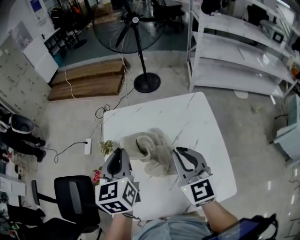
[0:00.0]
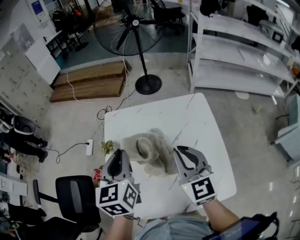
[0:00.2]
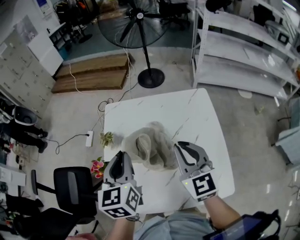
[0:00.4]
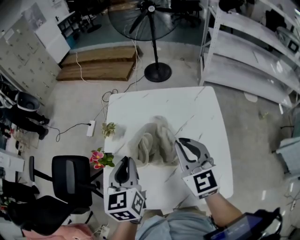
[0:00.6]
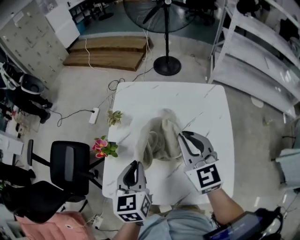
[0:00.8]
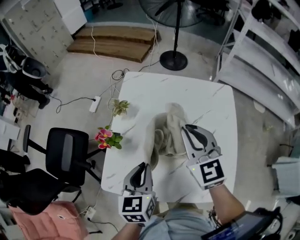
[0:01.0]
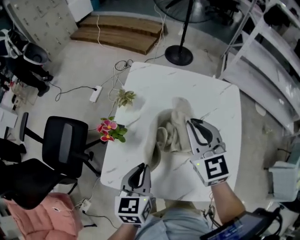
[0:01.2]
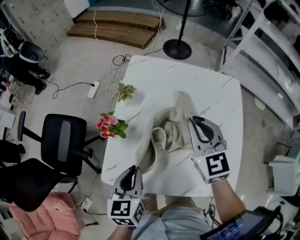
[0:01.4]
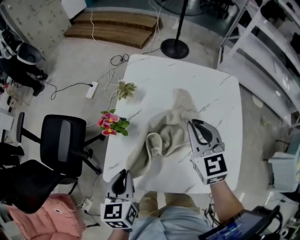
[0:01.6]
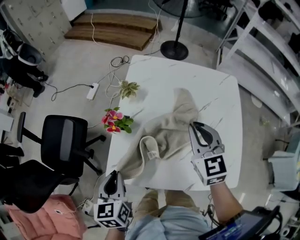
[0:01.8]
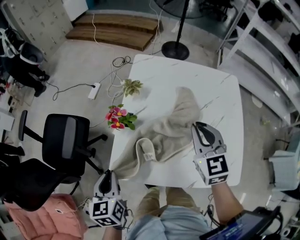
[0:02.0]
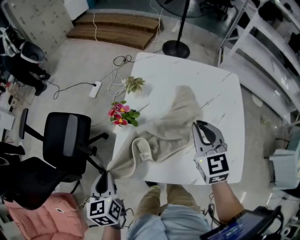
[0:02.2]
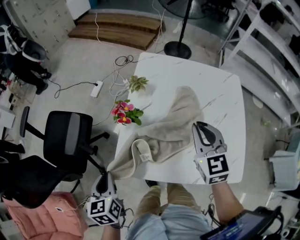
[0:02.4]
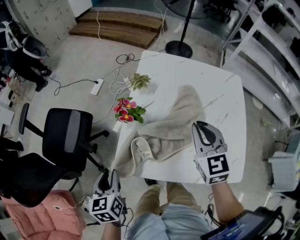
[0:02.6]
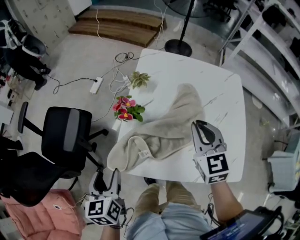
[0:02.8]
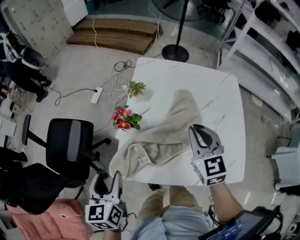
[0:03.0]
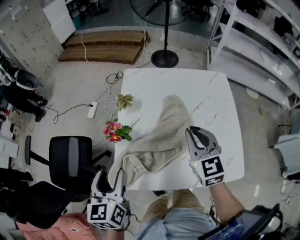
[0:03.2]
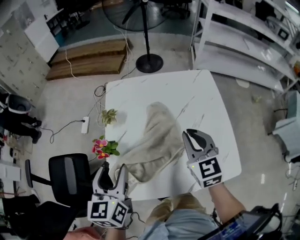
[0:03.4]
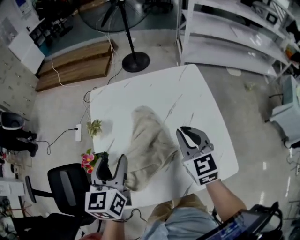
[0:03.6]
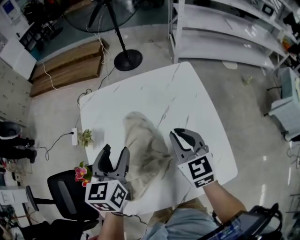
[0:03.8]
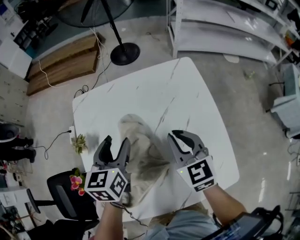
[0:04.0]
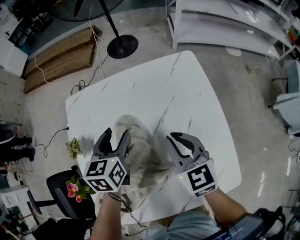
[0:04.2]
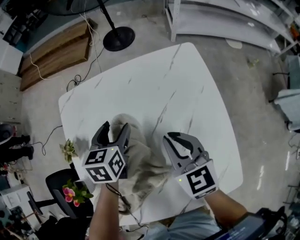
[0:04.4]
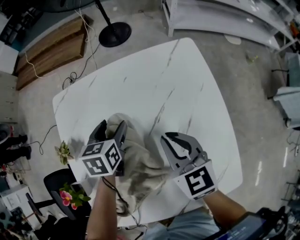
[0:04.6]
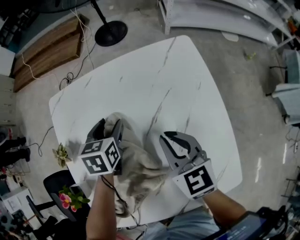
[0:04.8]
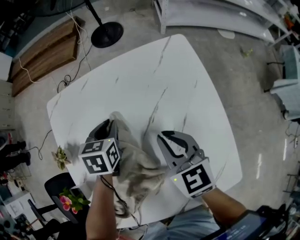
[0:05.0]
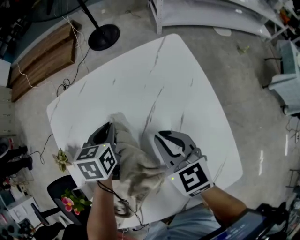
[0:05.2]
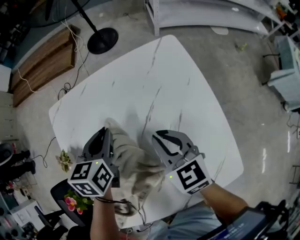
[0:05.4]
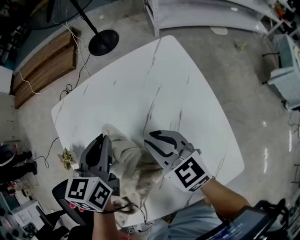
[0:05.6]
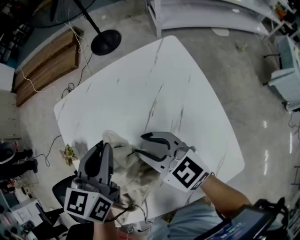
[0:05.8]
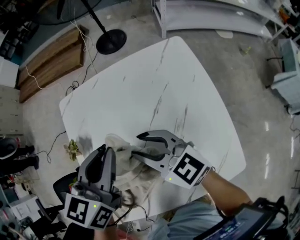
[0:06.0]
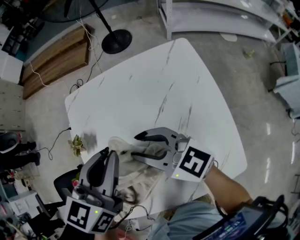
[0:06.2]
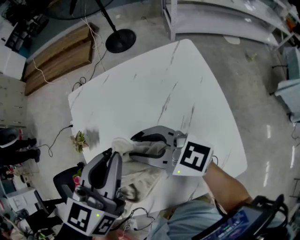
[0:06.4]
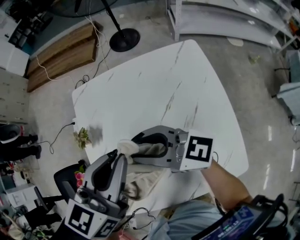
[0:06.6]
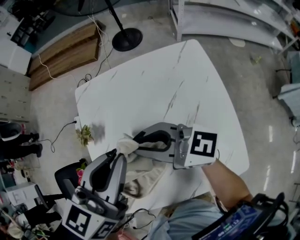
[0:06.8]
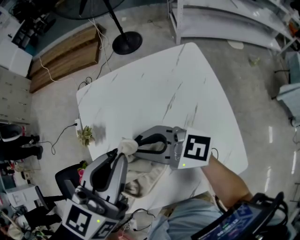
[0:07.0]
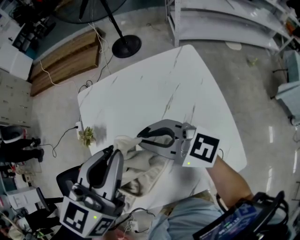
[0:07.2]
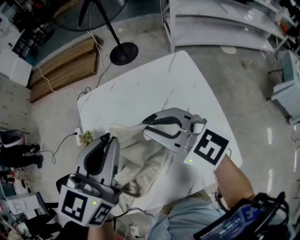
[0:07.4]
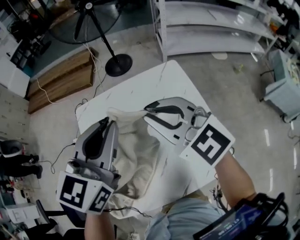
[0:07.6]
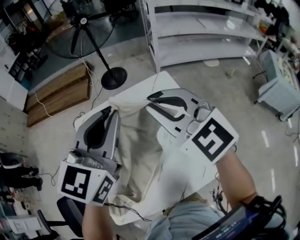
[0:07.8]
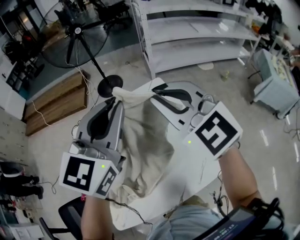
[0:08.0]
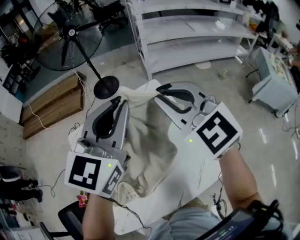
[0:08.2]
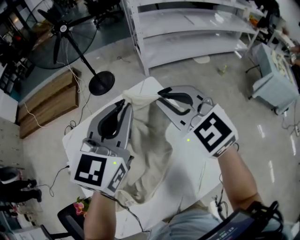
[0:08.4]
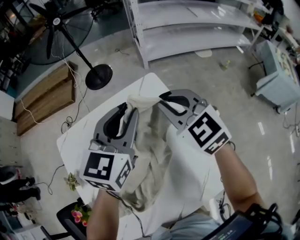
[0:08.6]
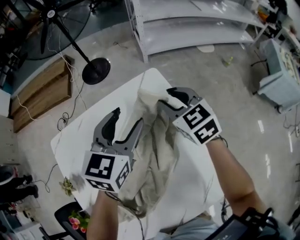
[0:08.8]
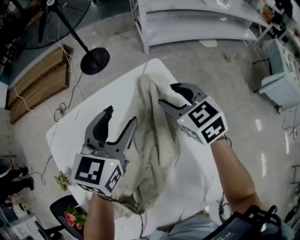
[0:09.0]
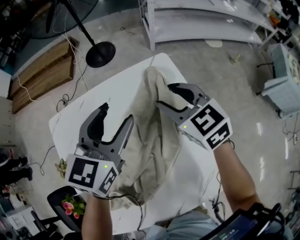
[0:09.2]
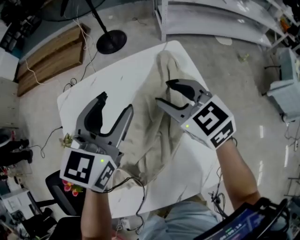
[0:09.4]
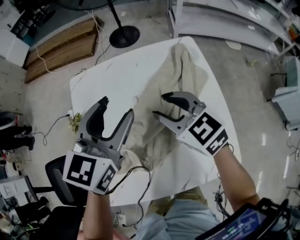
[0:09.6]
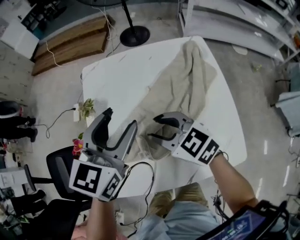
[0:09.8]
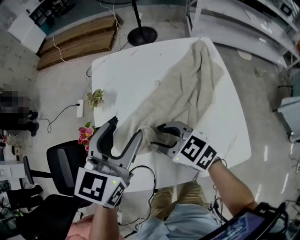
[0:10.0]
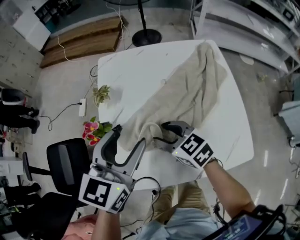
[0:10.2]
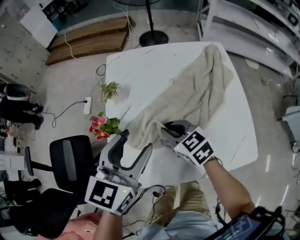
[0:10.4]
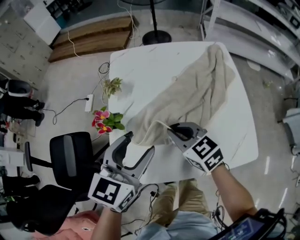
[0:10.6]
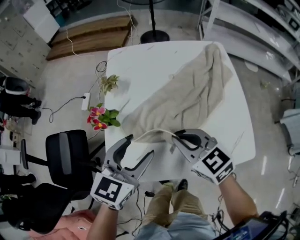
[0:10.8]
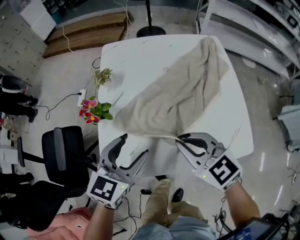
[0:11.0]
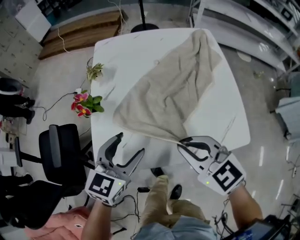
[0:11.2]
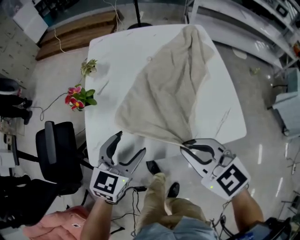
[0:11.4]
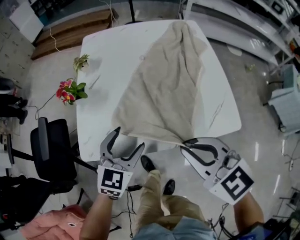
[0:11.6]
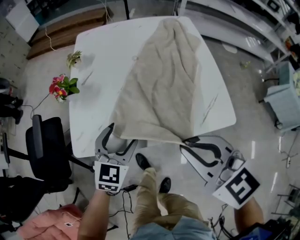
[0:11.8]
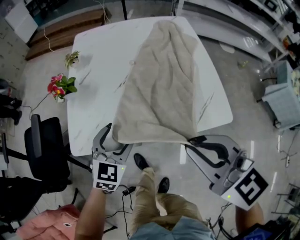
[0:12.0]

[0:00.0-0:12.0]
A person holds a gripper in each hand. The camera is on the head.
0:00.0 to 0:01.6: The right gripper travels downward and to the left by some 10 cm; the left gripper travels backward, downward and to the left by approximately 30 cm, and swivels some 20 degrees.
0:01.6 to 0:03.0: The right gripper changes place by roughly 5 cm. The left gripper shifts about 10 cm to the left, and opens.
0:03.0 to 0:04.4: The left gripper shifts approximately 50 cm forward and to the right, and turns by some 40 degrees. The right gripper shifts approximately 20 cm to the right, forward and downward.
0:04.4 to 0:06.0: The right gripper travels to the left by approximately 10 cm, swivels about 30 degrees, and opens up. Meanwhile the left gripper is displaced upward and backward by some 20 cm, and closes its fingers.
0:06.0 to 0:07.6: The two grippers go approximately 15 cm upward. The right gripper turns by approximately 20 degrees, and closes its fingers. The left gripper rotates roughly 20 degrees.
0:07.6 to 0:09.0: The grippers both shift downward, forward and to the right by roughly 30 cm. The left gripper opens its fingers; the right gripper rotates some 40 degrees, and opens up.
0:09.0 to 0:10.4: The left gripper ends up some 40 cm from where it was, while the right gripper moves roughly 40 cm, rotates some 30 degrees, and closes up.
0:10.4 to 0:12.0: The right gripper heads backward, upward and to the right, covering some 30 cm. Meanwhile the left gripper heads downward and backward, covering about 25 cm, and changes its angle by some 20 degrees.

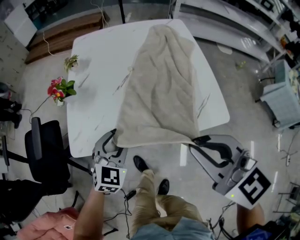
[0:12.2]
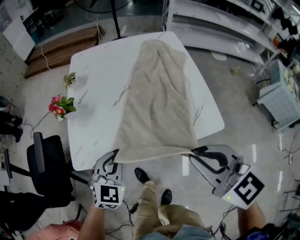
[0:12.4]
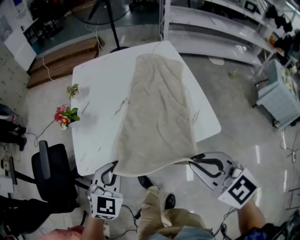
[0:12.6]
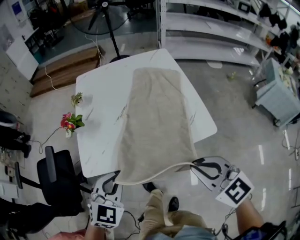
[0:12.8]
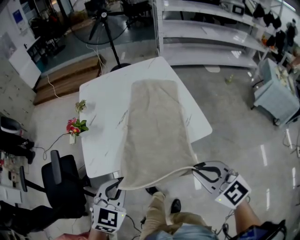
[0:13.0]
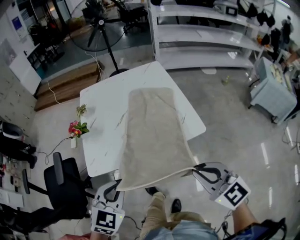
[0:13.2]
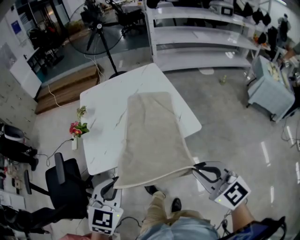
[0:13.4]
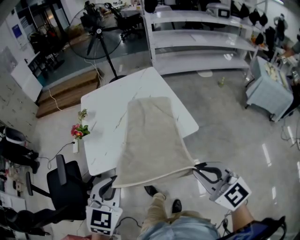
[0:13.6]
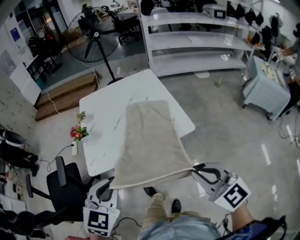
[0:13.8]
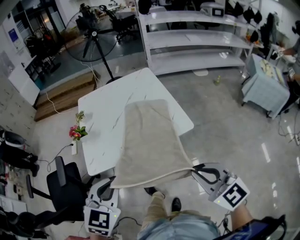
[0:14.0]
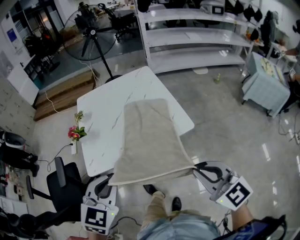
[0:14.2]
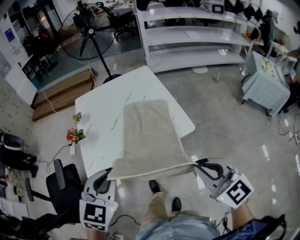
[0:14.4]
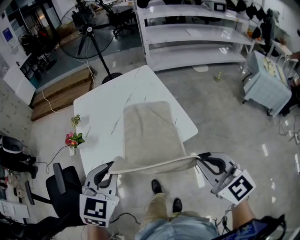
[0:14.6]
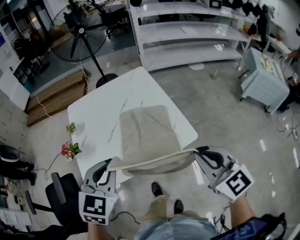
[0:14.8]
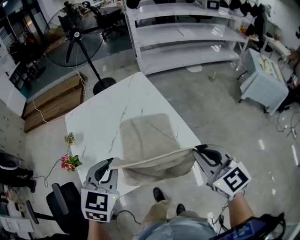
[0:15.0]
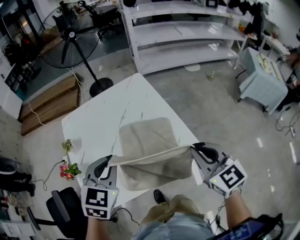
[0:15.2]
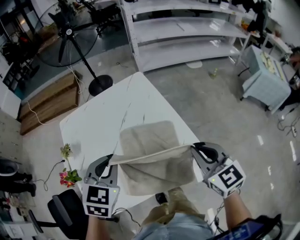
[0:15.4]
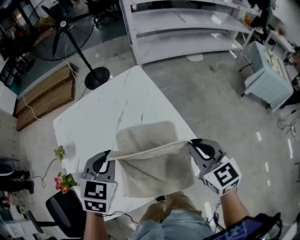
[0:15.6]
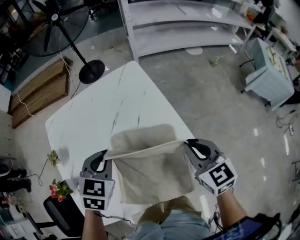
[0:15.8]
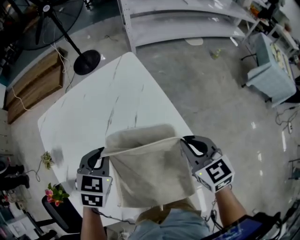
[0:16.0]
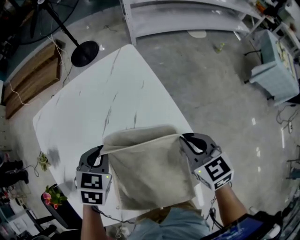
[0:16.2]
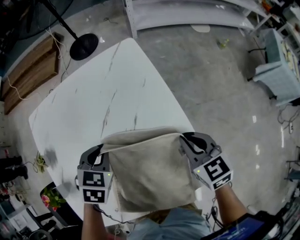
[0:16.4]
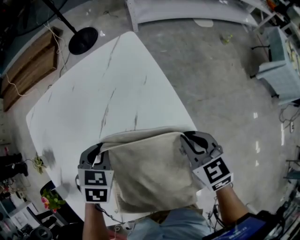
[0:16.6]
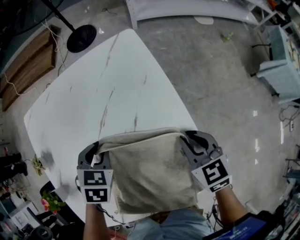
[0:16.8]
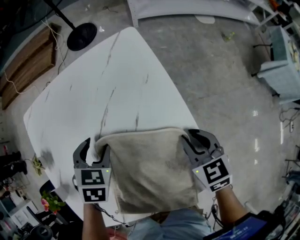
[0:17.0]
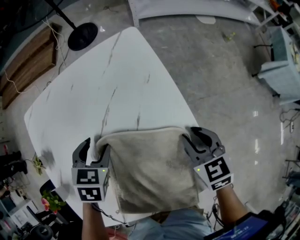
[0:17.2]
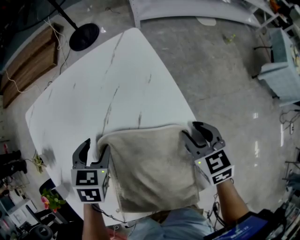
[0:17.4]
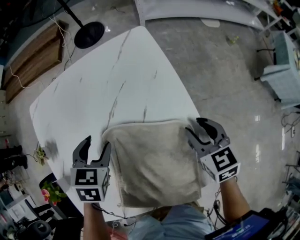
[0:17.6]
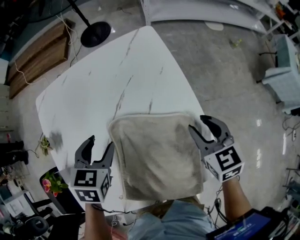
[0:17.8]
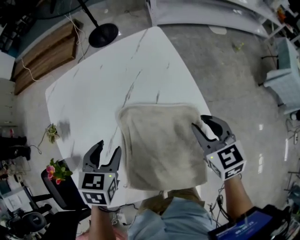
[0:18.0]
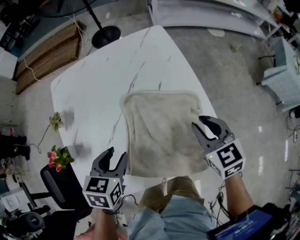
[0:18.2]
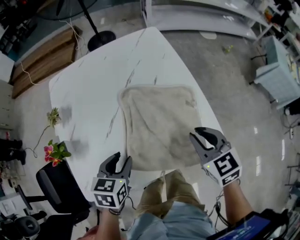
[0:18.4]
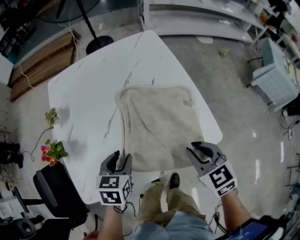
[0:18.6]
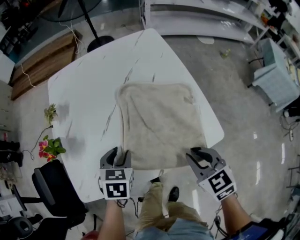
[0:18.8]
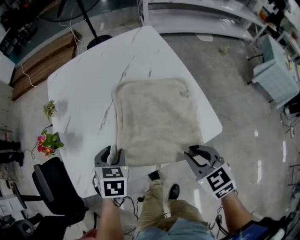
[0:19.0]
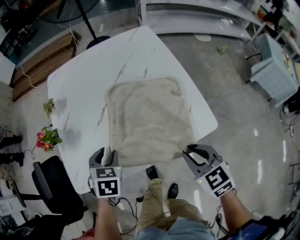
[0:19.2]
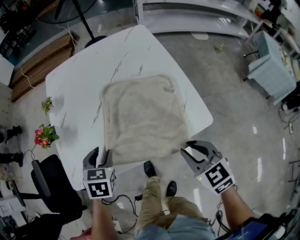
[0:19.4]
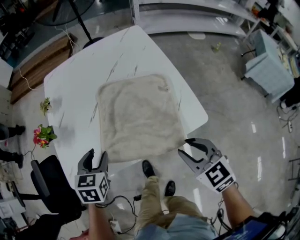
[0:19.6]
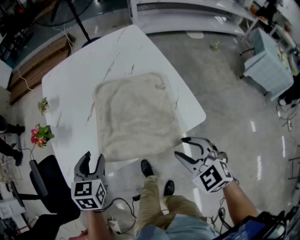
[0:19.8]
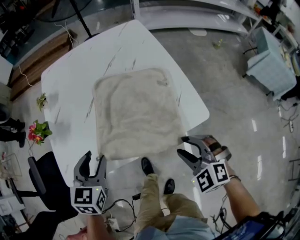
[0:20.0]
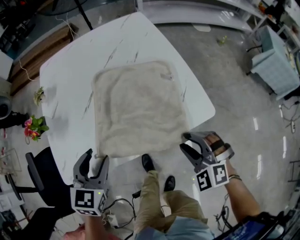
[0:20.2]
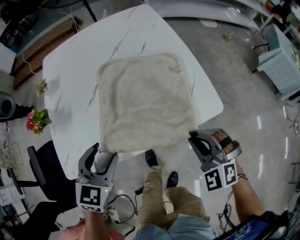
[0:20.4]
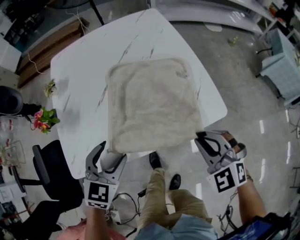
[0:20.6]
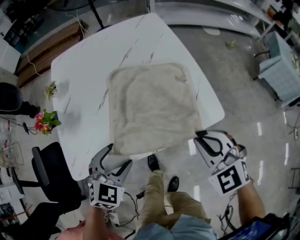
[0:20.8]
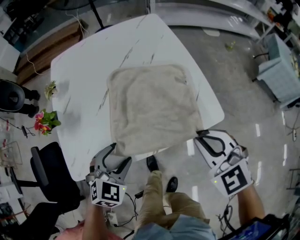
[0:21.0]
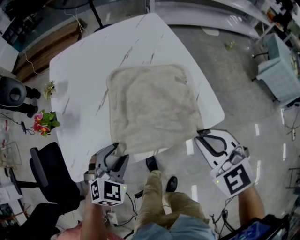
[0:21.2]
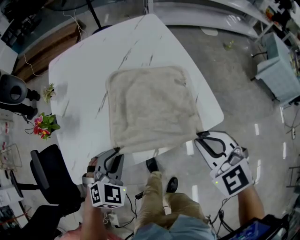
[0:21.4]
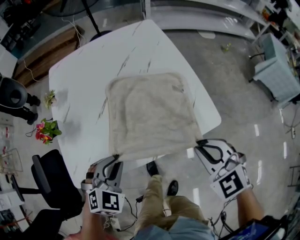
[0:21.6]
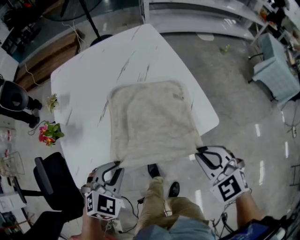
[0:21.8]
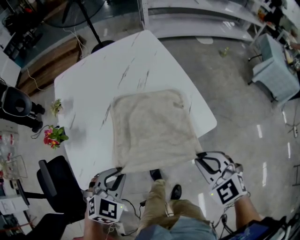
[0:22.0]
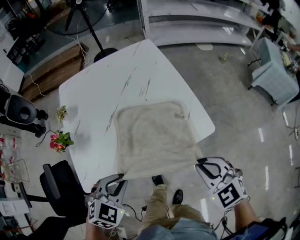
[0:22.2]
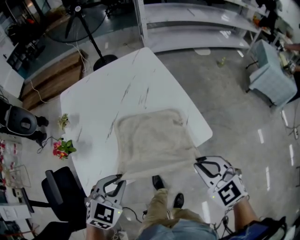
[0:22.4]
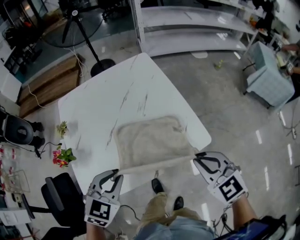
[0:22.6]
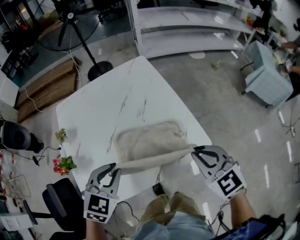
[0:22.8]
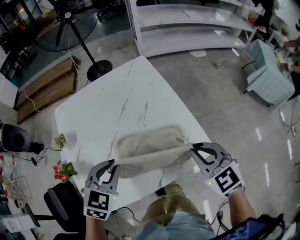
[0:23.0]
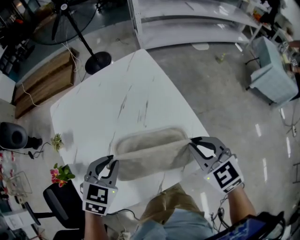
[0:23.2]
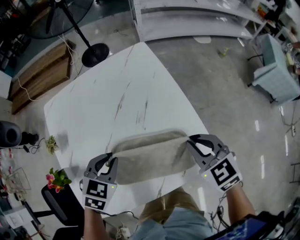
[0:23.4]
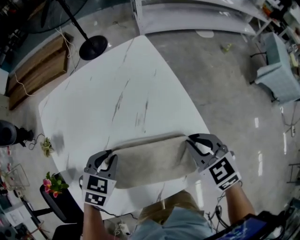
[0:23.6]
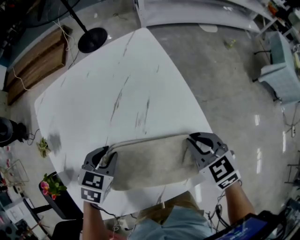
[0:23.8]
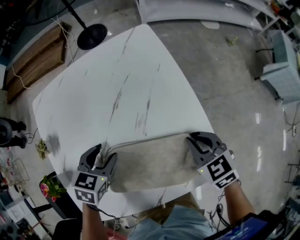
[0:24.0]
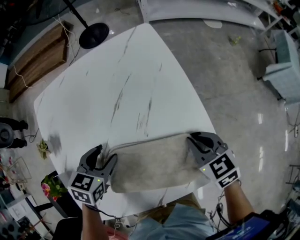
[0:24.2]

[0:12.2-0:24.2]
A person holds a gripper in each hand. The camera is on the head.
0:12.2 to 0:13.8: The left gripper travels upward and backward by approximately 30 cm, and closes its fingers; the right gripper heads backward and to the right, covering about 20 cm.
0:13.8 to 0:15.2: The two grippers go about 25 cm forward. The right gripper changes its angle by about 20 degrees.
0:15.2 to 0:16.6: The left gripper moves downward and forward, some 30 cm, and swivels approximately 30 degrees. The right gripper is displaced forward and downward by about 30 cm, and changes its angle by about 20 degrees.
0:16.6 to 0:18.2: The right gripper heads backward, upward and to the left, covering some 10 cm, while the left gripper moves backward, approximately 15 cm, changes its angle by roughly 20 degrees, and opens its fingers.
0:18.2 to 0:19.8: The left gripper moves backward, about 10 cm. Meanwhile the right gripper shifts approximately 20 cm backward, and rotates roughly 20 degrees.
0:19.8 to 0:21.2: The right gripper travels upward by some 5 cm, and closes up. The left gripper moves to the right, about 5 cm, swivels approximately 40 degrees, and opens, then closes once more.
0:21.2 to 0:22.6: The left gripper moves upward, approximately 15 cm, and closes its fingers.
0:22.6 to 0:24.2: Both grippers travel together forward and downward, about 25 cm. The left gripper changes its angle by about 30 degrees, and opens its fingers, while the right gripper turns by approximately 20 degrees.
